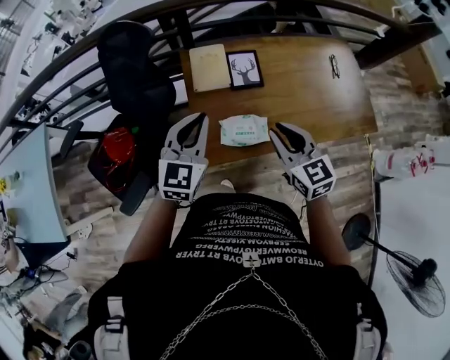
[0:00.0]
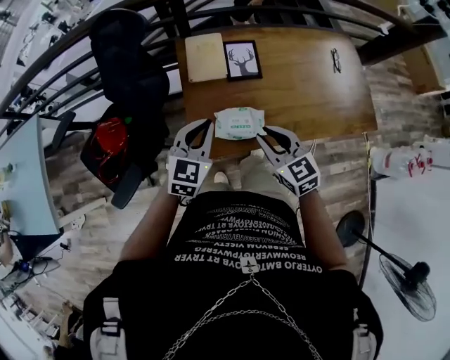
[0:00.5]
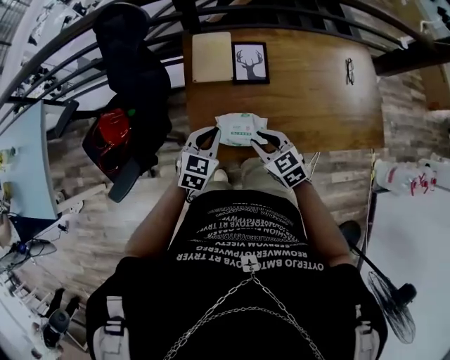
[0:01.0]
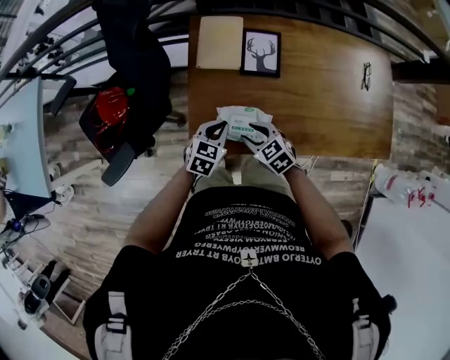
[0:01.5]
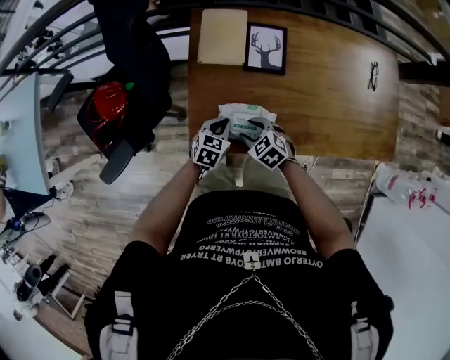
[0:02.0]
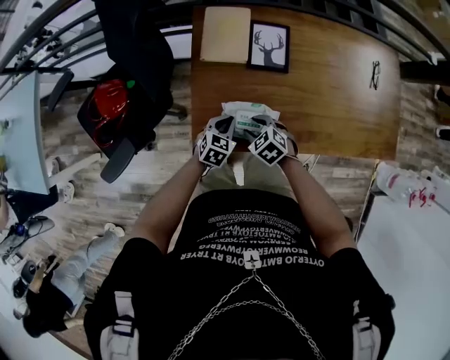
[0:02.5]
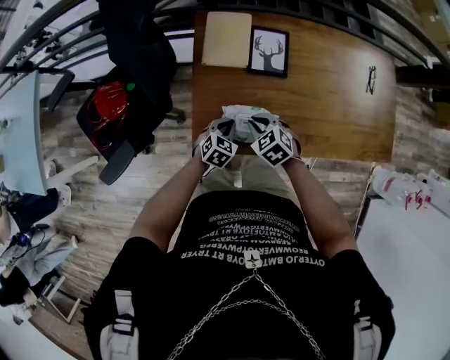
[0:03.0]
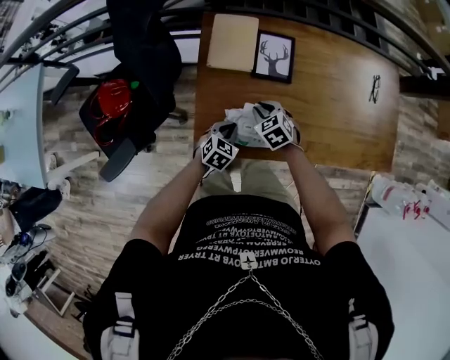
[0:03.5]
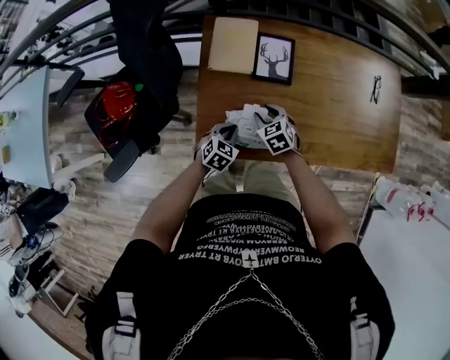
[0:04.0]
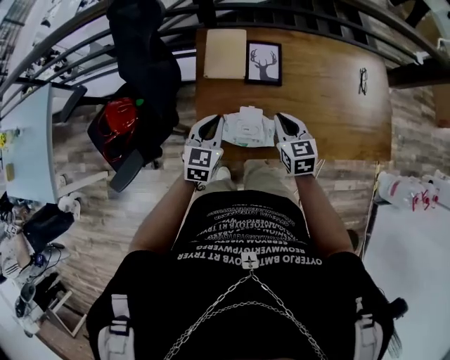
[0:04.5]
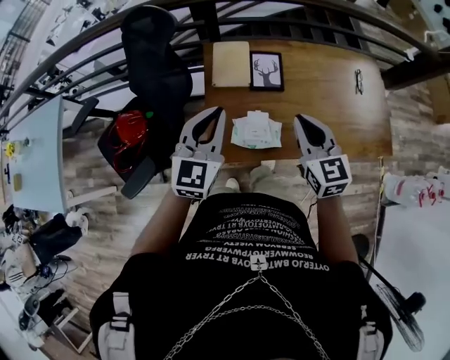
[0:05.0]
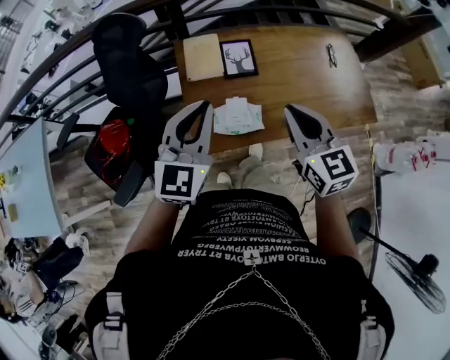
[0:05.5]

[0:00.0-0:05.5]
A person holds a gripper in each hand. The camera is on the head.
0:00.0 to 0:02.0: The two grippers go some 35 cm downward. The right gripper tilts its fingers about 30 degrees downward, and opens its fingers. The left gripper angles its fingers downward, by some 30 degrees.
0:02.0 to 0:03.5: The right gripper travels forward by about 10 cm, and closes its fingers.
0:03.5 to 0:05.5: The two grippers go some 40 cm upward. The right gripper angles its fingers upward, by approximately 40 degrees. The left gripper tips its fingers upward by about 40 degrees.

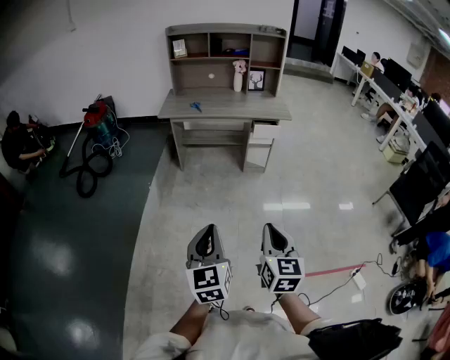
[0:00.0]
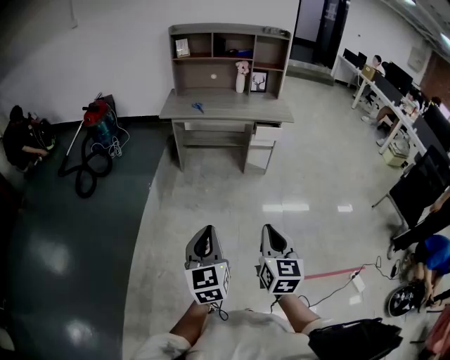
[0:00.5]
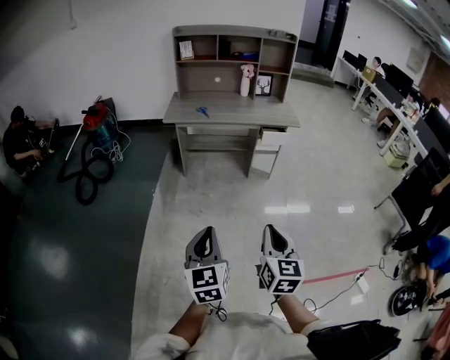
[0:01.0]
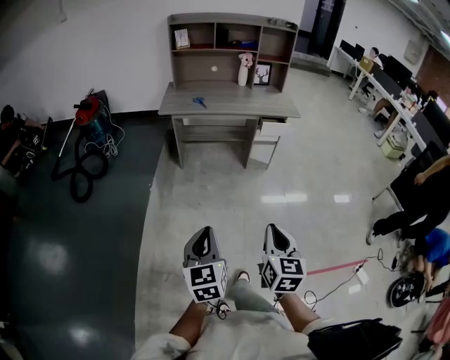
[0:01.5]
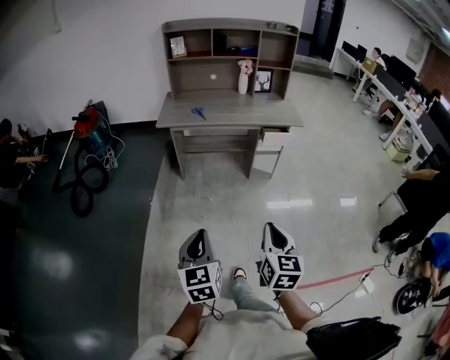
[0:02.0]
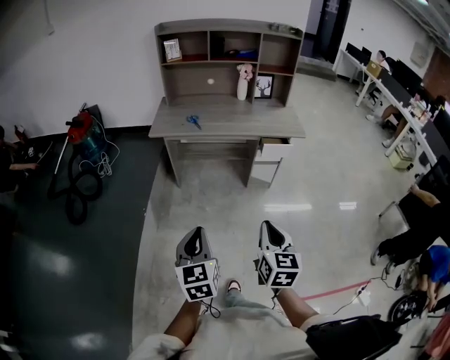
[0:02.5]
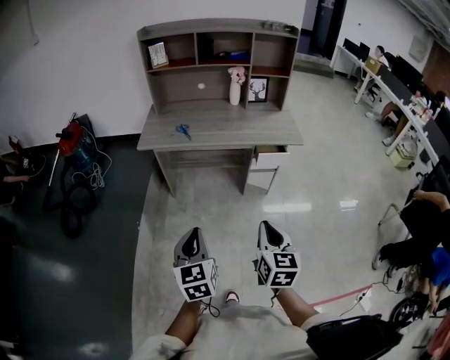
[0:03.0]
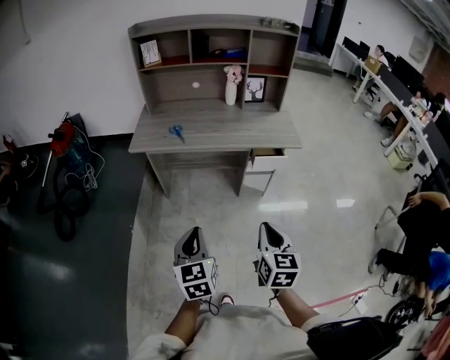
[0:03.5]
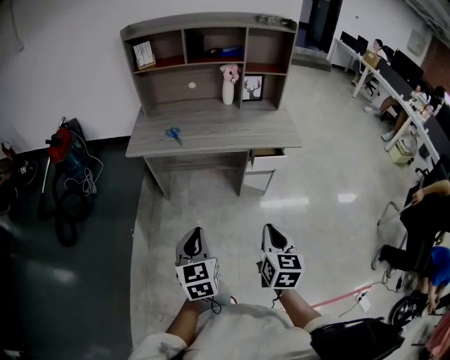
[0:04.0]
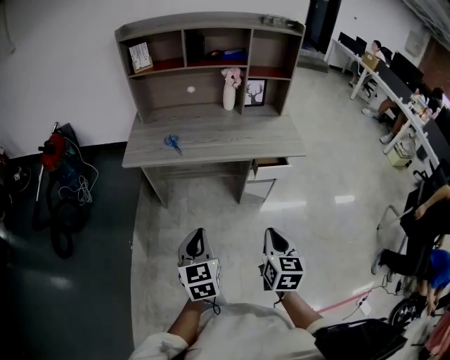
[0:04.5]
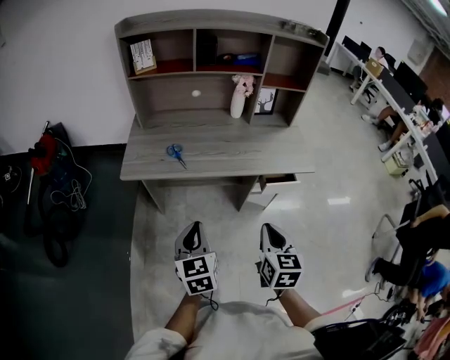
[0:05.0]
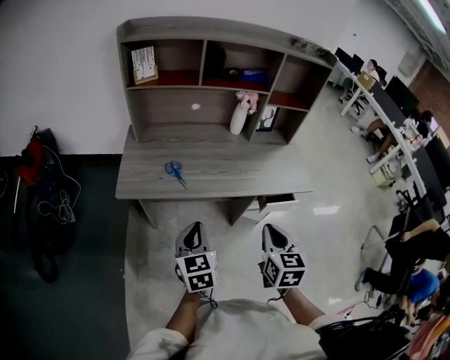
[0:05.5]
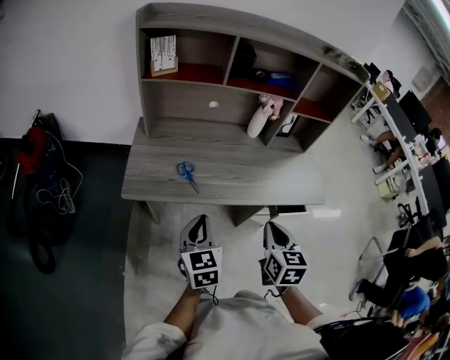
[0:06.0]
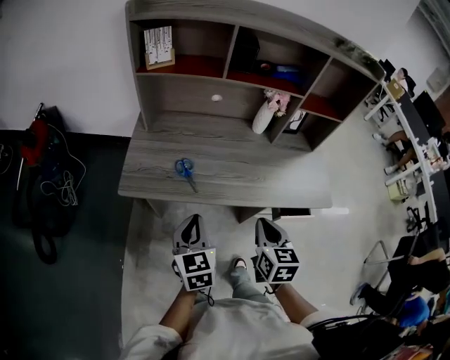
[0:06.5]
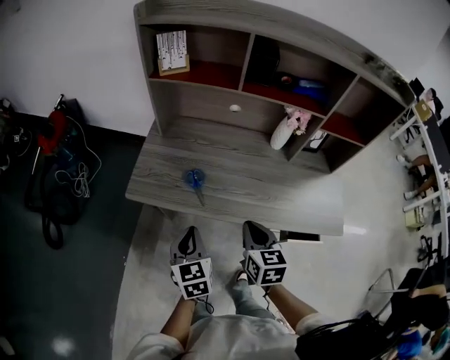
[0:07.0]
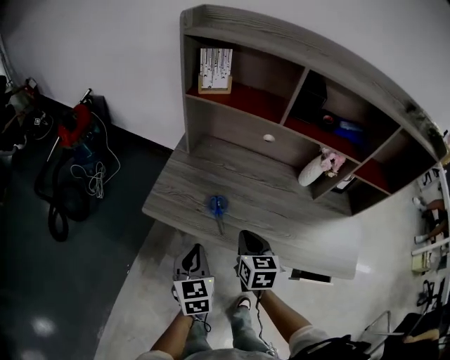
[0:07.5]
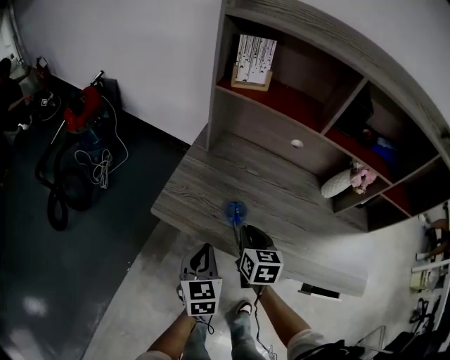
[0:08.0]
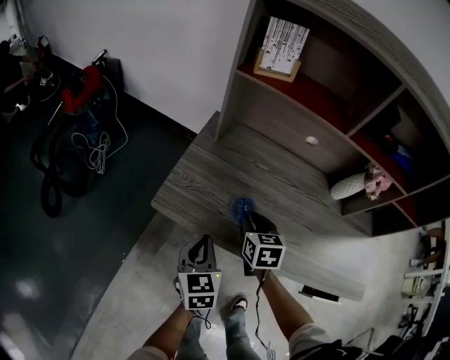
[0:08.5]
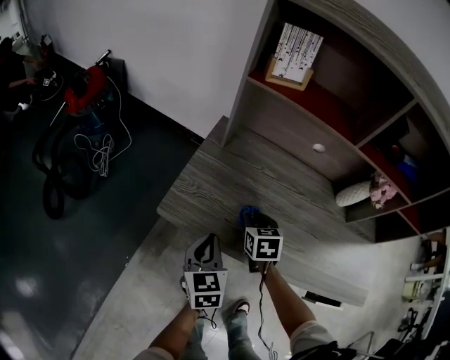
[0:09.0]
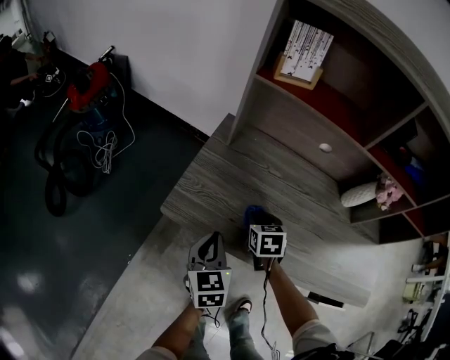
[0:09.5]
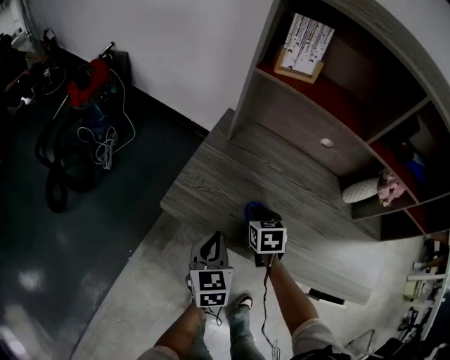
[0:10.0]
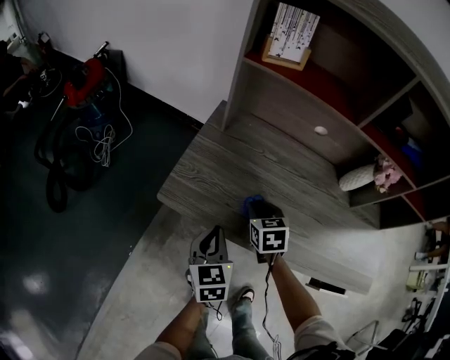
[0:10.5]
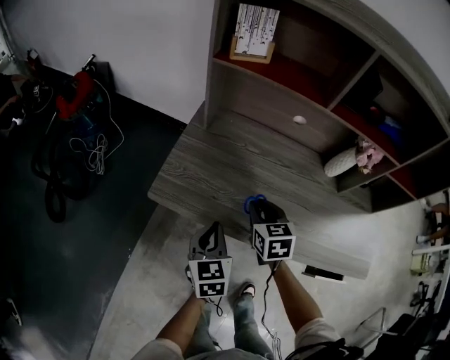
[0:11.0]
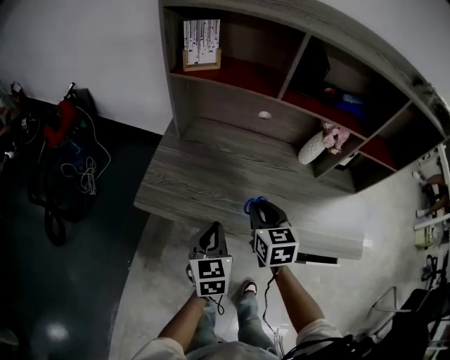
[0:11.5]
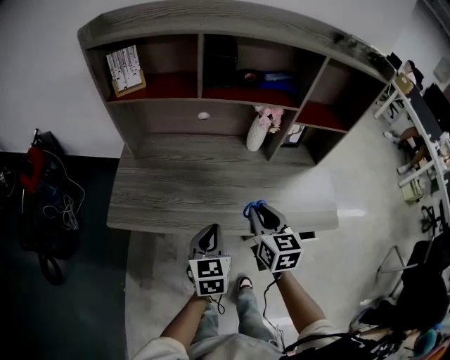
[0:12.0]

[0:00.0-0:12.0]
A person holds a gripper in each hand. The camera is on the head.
0:00.0 to 0:02.0: The grippers both shift forward and to the left by some 20 cm.
0:02.0 to 0:04.0: Both grippers travel together forward, roughly 30 cm.
0:04.0 to 0:06.0: The right gripper travels forward and to the left by approximately 40 cm. The left gripper shifts about 35 cm forward.
0:06.0 to 0:08.0: The left gripper changes place by approximately 15 cm, and swivels roughly 20 degrees. The right gripper moves about 35 cm, and rotates about 30 degrees.
0:08.0 to 0:10.0: The left gripper shifts by approximately 5 cm. The right gripper is displaced downward and forward by some 10 cm.
0:10.0 to 0:12.0: The grippers both shift to the right, upward and backward by some 30 cm. The left gripper rotates some 30 degrees. The right gripper changes its angle by approximately 40 degrees.

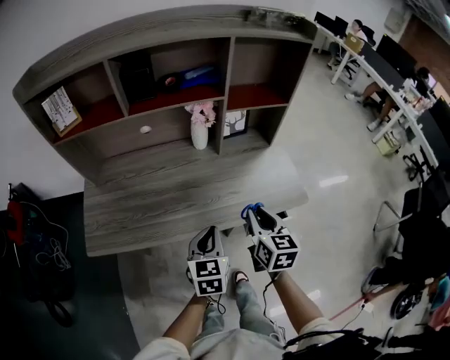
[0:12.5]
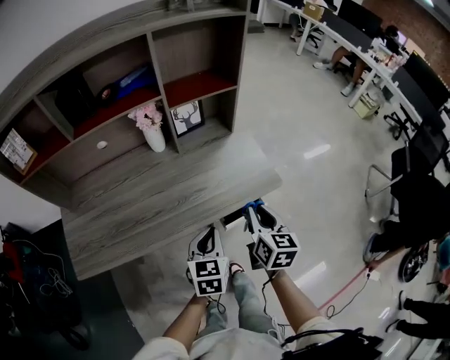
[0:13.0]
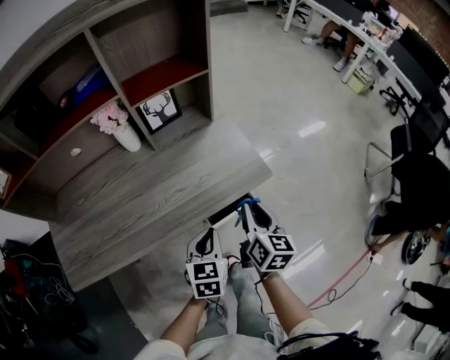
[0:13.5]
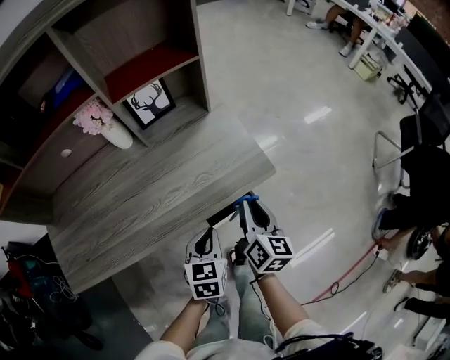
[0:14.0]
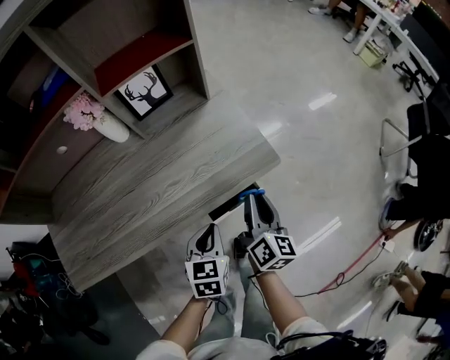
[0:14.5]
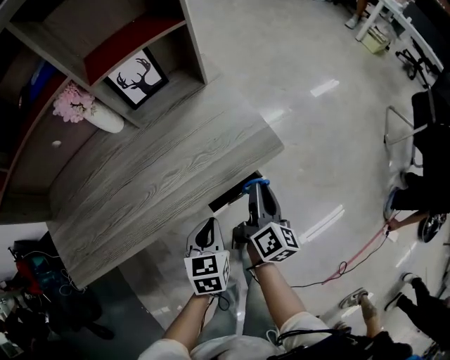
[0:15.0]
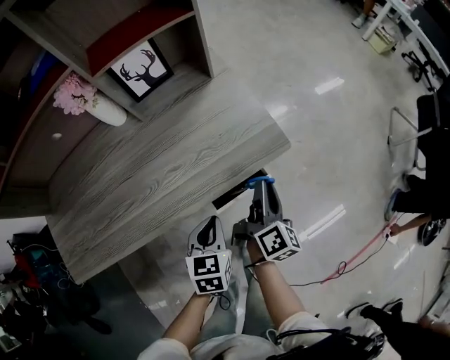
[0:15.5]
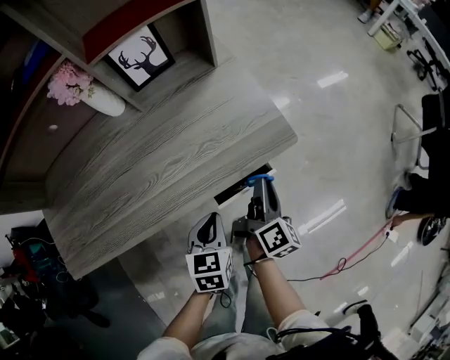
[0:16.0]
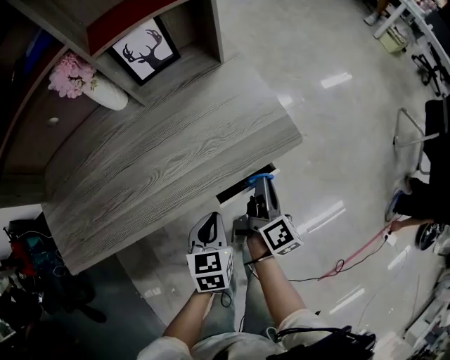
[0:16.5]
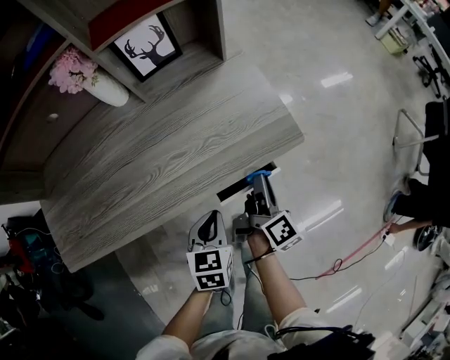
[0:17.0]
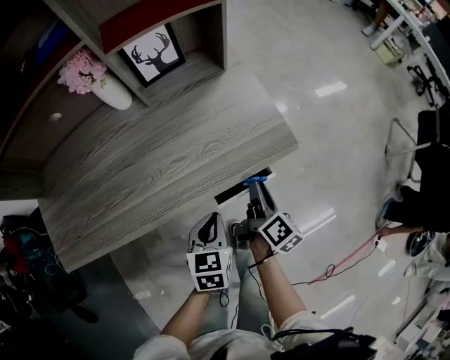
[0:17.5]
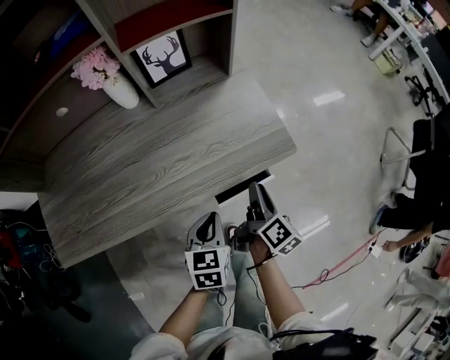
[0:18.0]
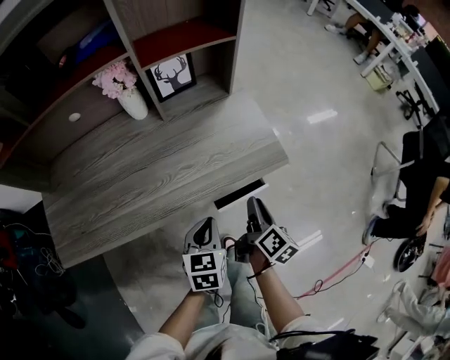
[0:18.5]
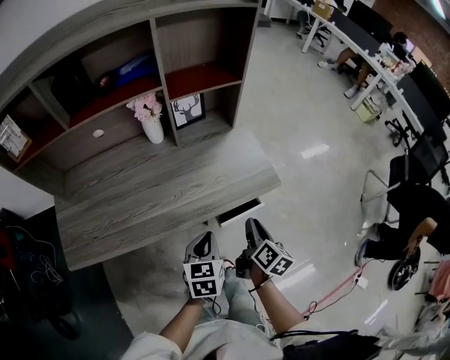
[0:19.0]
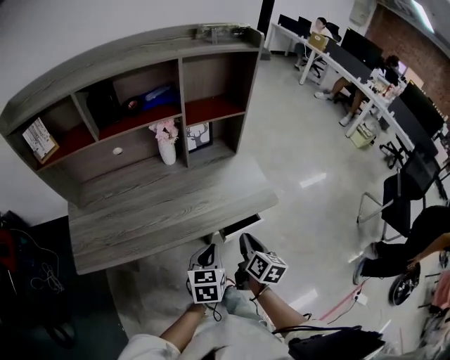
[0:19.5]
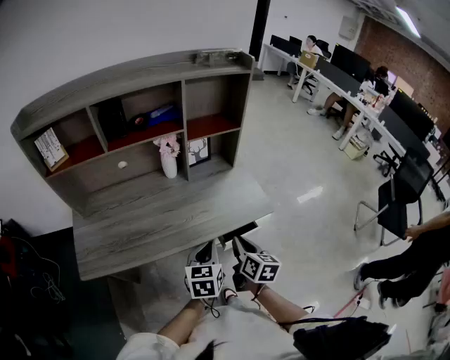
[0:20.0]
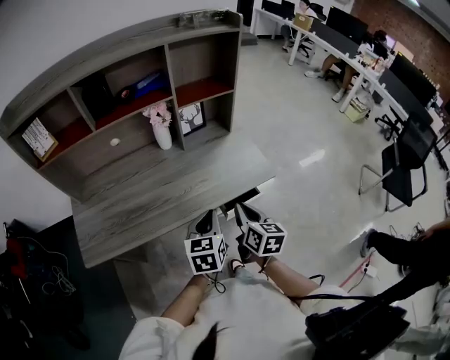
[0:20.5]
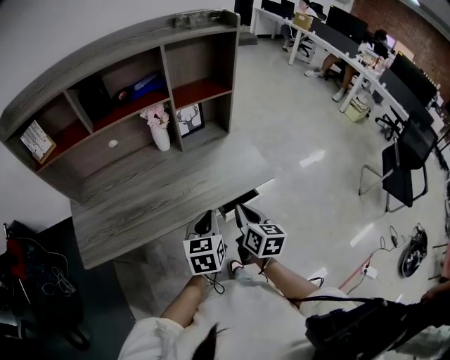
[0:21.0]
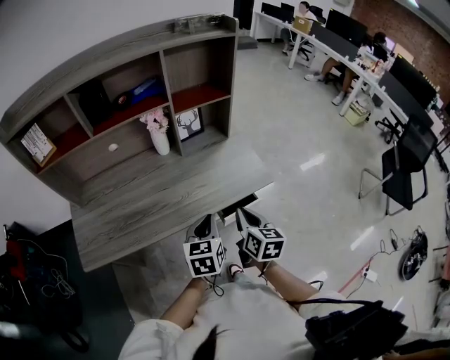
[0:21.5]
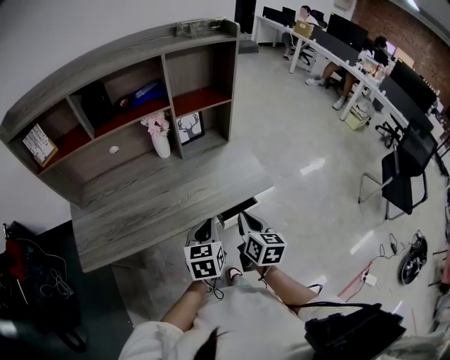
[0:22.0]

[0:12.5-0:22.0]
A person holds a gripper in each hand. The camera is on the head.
0:12.5 to 0:14.5: The two grippers go some 25 cm to the right and downward. The right gripper changes its angle by approximately 40 degrees. The left gripper changes its angle by about 20 degrees.
0:14.5 to 0:16.5: The right gripper is displaced downward by about 10 cm, and changes its angle by roughly 20 degrees. The left gripper ends up some 5 cm from where it was.
0:16.5 to 0:18.0: The grippers make only small movements.
0:18.0 to 0:20.0: The left gripper goes roughly 20 cm upward. The right gripper shifts some 20 cm upward, backward and to the left, and swivels approximately 30 degrees.
0:20.0 to 0:22.0: The grippers make only small movements.
